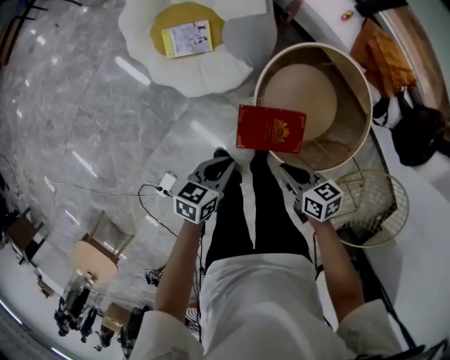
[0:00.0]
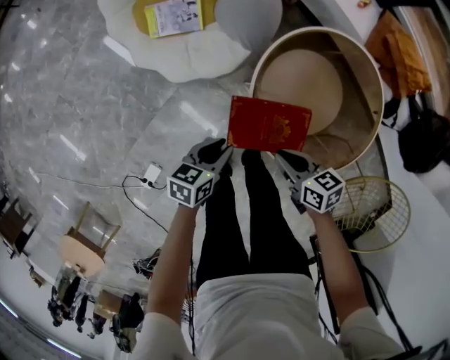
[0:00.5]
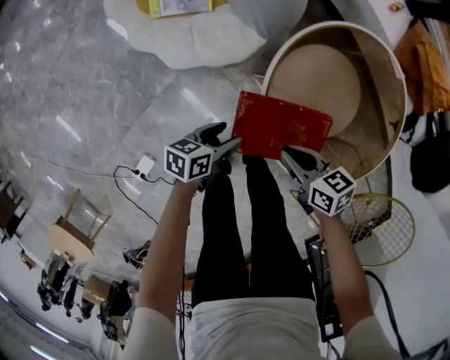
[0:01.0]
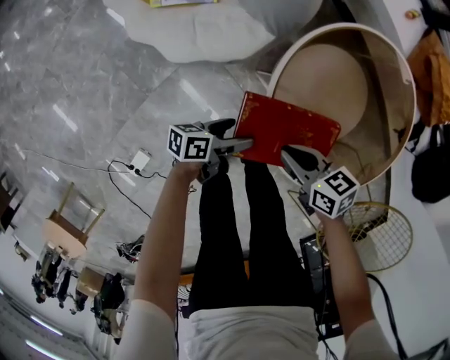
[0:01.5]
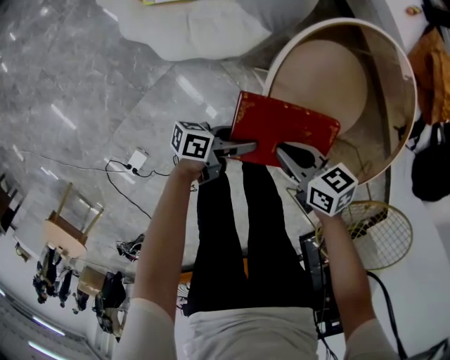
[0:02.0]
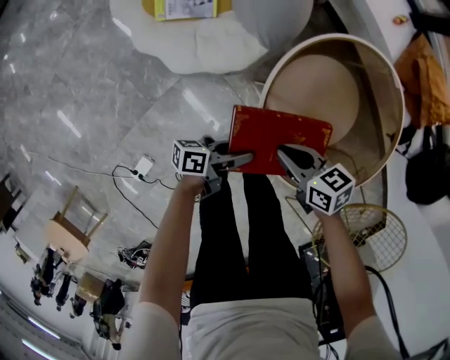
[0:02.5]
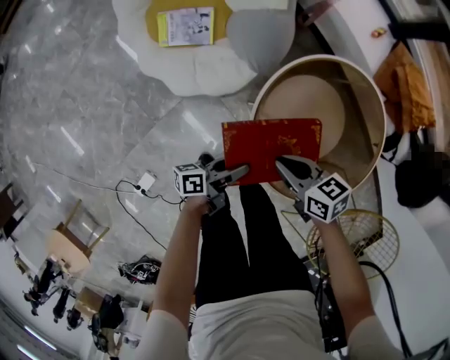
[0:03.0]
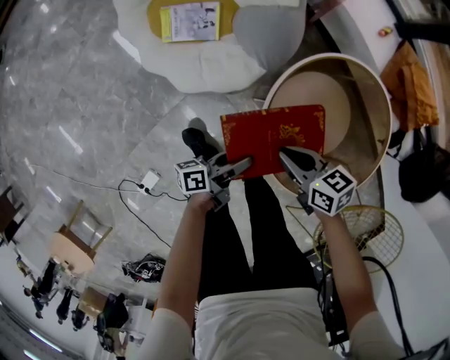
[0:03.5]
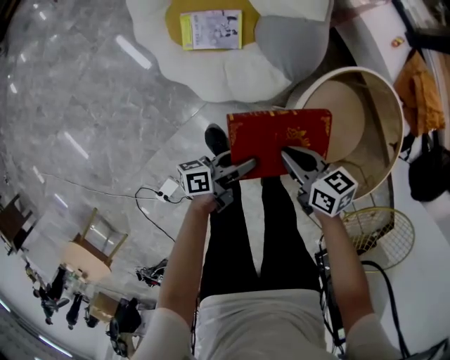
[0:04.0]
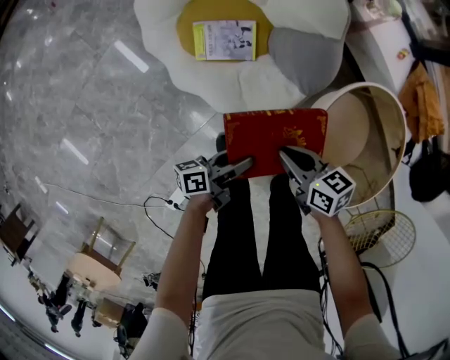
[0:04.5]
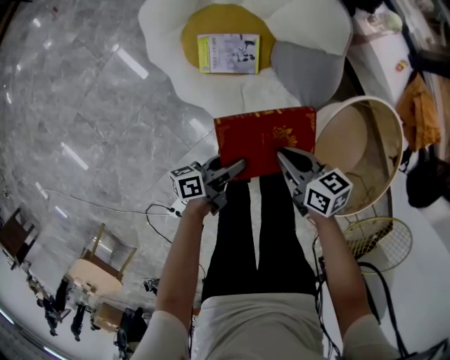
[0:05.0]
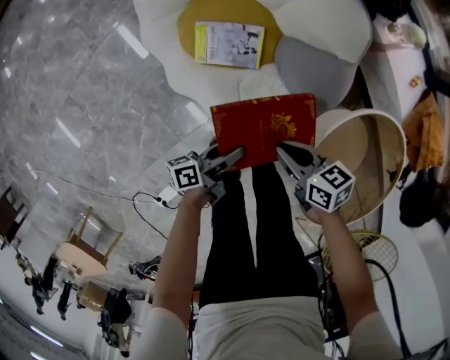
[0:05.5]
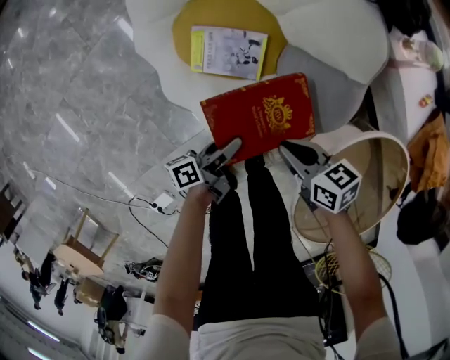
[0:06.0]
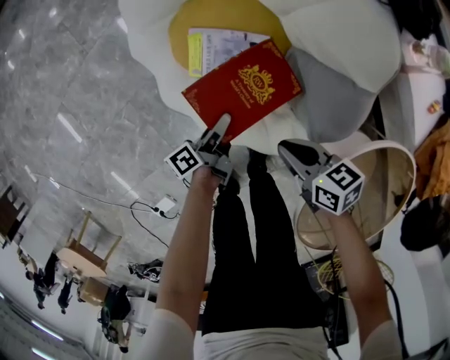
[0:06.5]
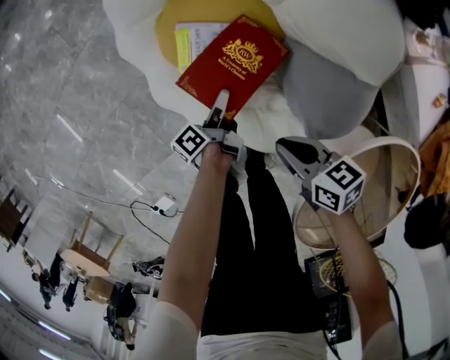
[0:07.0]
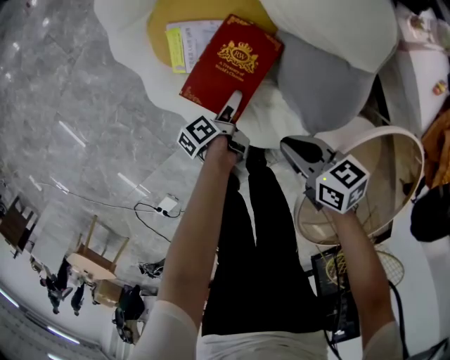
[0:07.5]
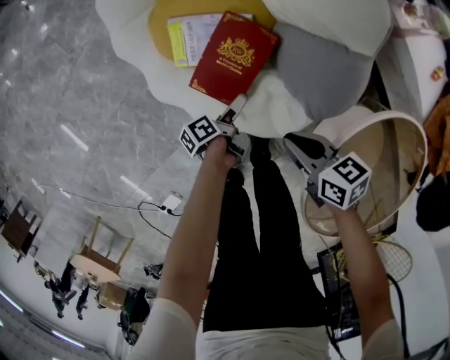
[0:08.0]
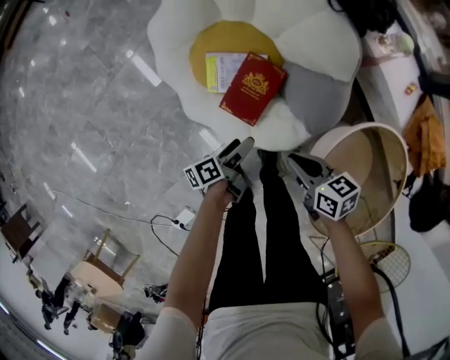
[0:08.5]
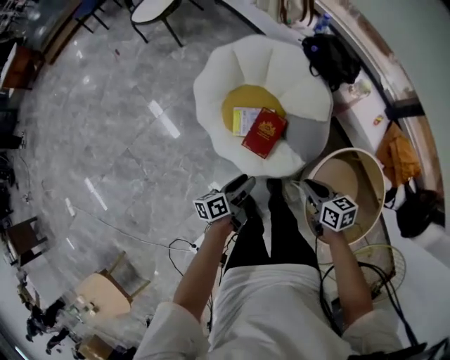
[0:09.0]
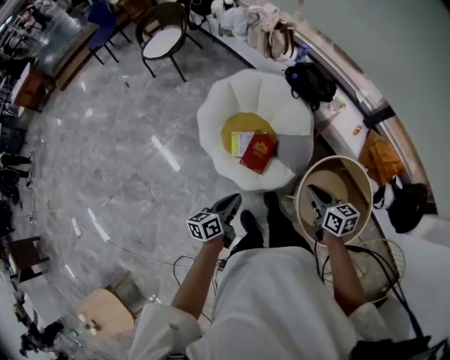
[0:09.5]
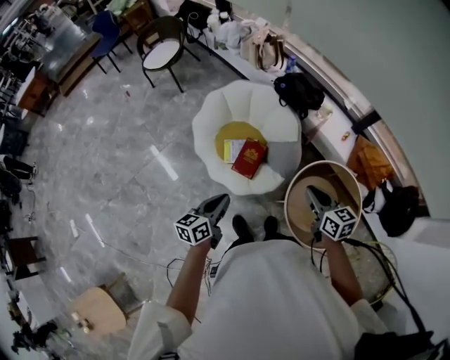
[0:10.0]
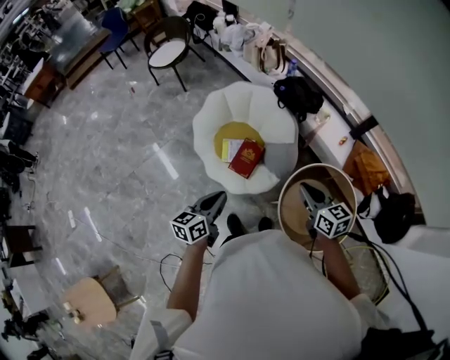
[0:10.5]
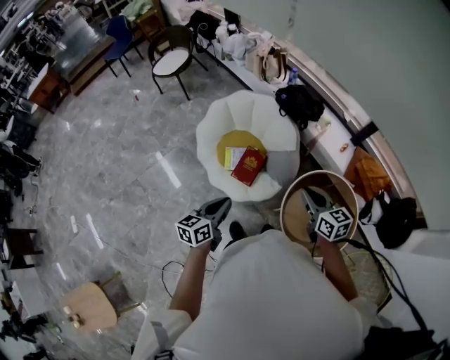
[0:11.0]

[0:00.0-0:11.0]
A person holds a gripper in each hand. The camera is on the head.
0:00.0 to 0:02.0: The two grippers go approximately 25 cm downward. The left gripper rotates some 50 degrees, and opens.
0:02.0 to 0:03.5: The grippers both shift upward by about 10 cm. The left gripper rotates some 20 degrees.
0:03.5 to 0:05.5: Both grippers move forward and to the left, about 25 cm.
0:05.5 to 0:07.5: The left gripper goes roughly 25 cm downward and forward, turns by about 40 degrees, and opens its fingers; the right gripper heads downward and to the right, covering approximately 15 cm.
0:07.5 to 0:09.0: Both grippers travel together upward, roughly 40 cm. The left gripper swivels some 40 degrees, and closes up. The right gripper rotates some 20 degrees.
0:09.0 to 0:11.0: The left gripper is displaced upward and backward by approximately 30 cm, rotates about 30 degrees, and closes; the right gripper heads upward, covering roughly 25 cm, and turns by approximately 20 degrees.

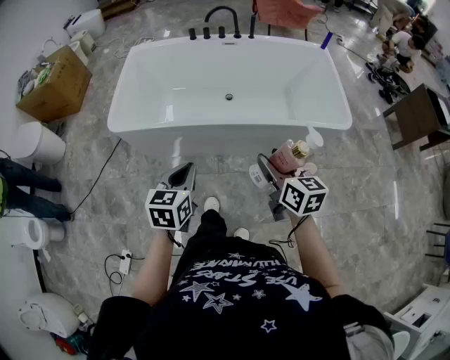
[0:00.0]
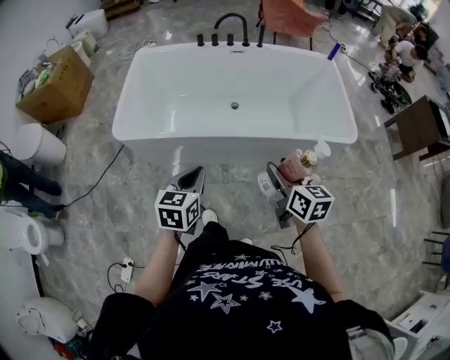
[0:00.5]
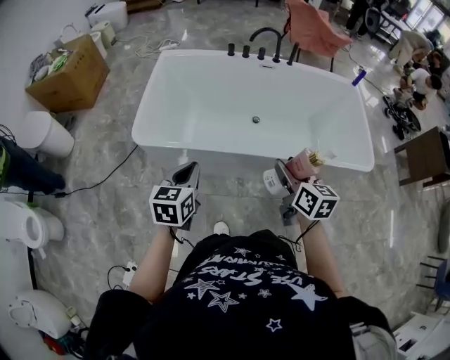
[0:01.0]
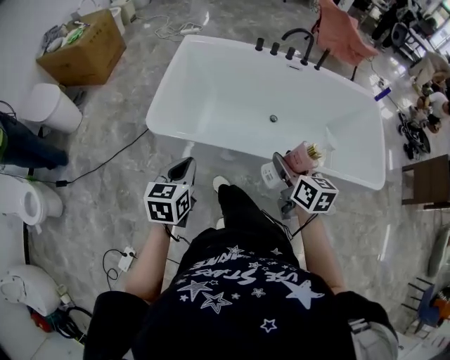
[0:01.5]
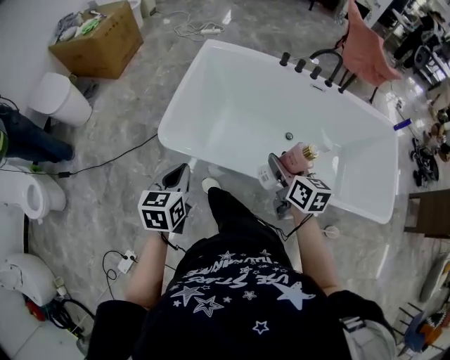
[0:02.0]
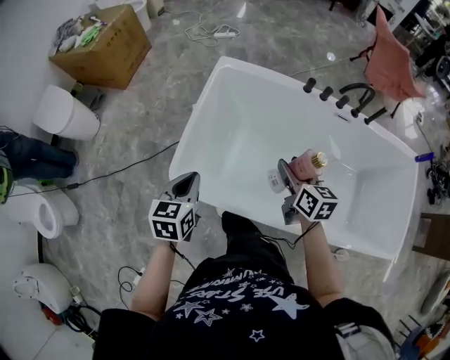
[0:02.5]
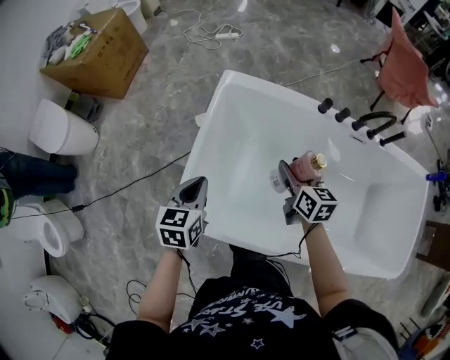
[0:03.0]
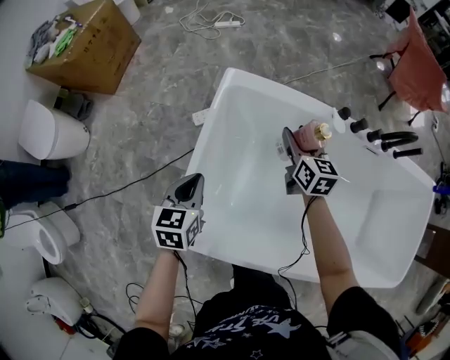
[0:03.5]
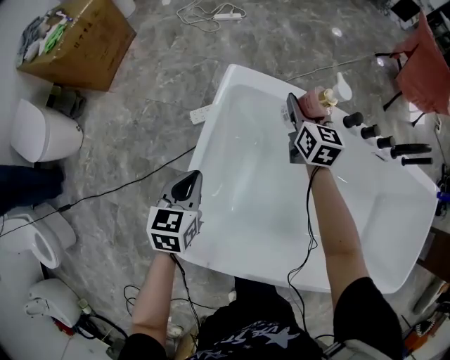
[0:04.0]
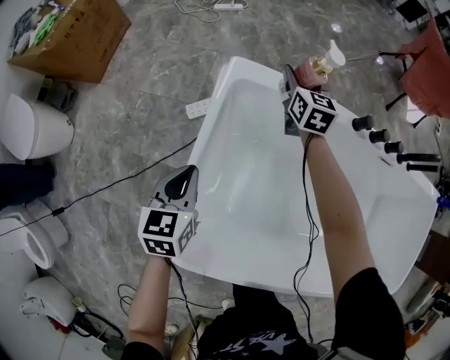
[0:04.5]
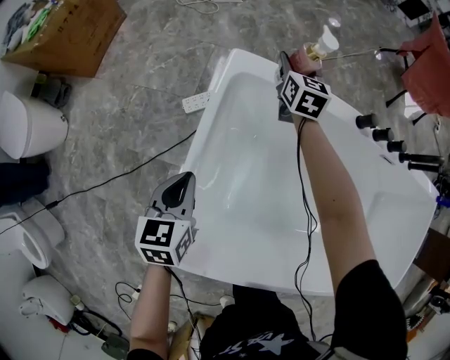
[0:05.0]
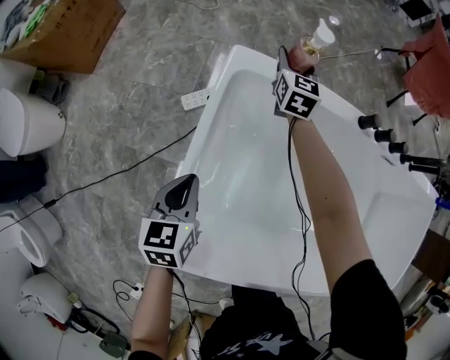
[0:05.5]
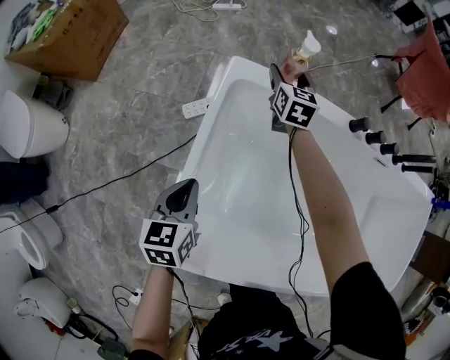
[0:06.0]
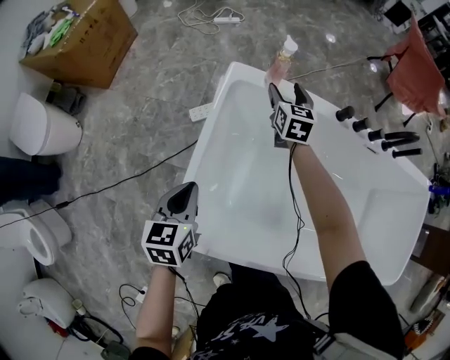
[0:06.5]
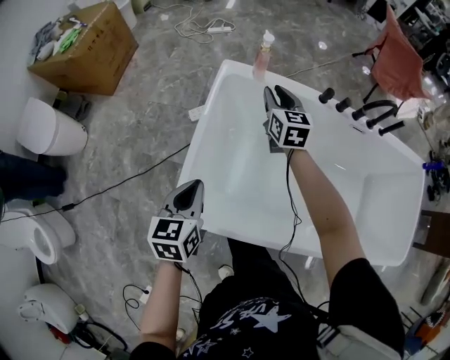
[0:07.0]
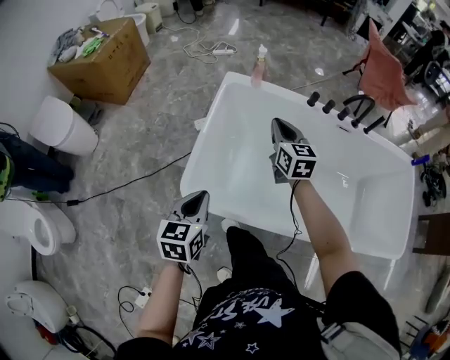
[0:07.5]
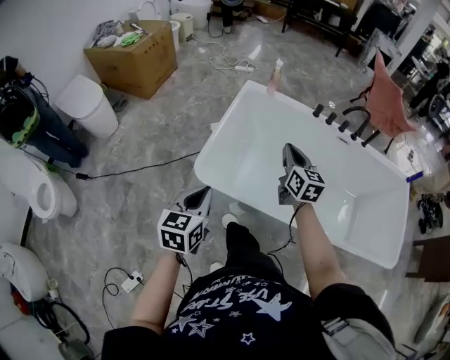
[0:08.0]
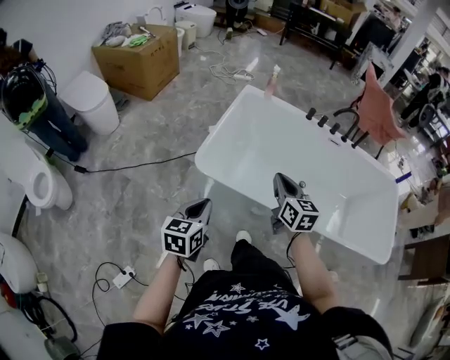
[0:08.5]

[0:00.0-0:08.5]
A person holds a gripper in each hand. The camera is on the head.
0:00.0 to 0:02.0: Both grippers are carried forward and to the left, roughly 40 cm.
0:02.0 to 0:04.0: The two grippers travel together, forward, about 60 cm.
0:04.0 to 0:06.5: The left gripper heads backward, covering about 10 cm. Meanwhile the right gripper reaches roughly 10 cm forward, then returns.
0:06.5 to 0:08.5: Both grippers are carried backward, some 60 cm. The right gripper closes its fingers.

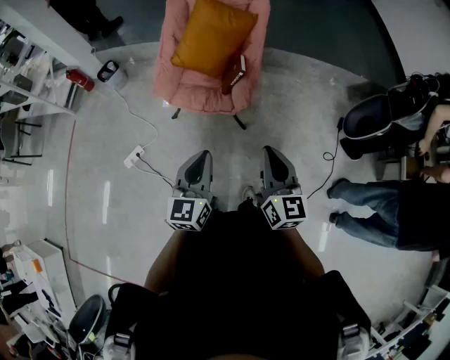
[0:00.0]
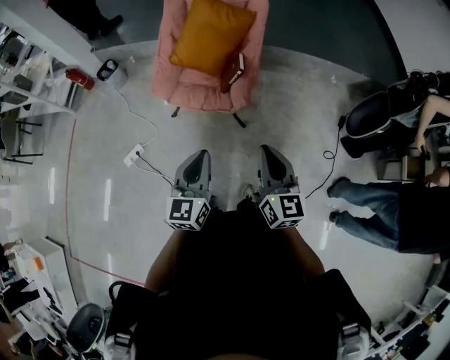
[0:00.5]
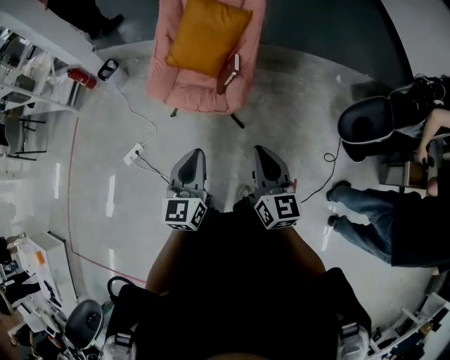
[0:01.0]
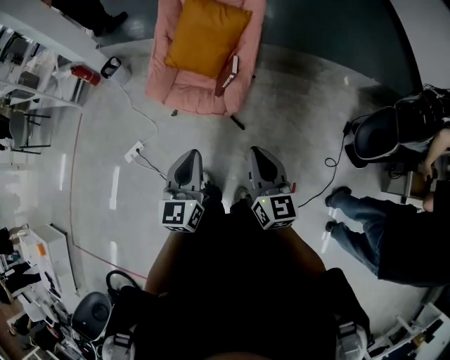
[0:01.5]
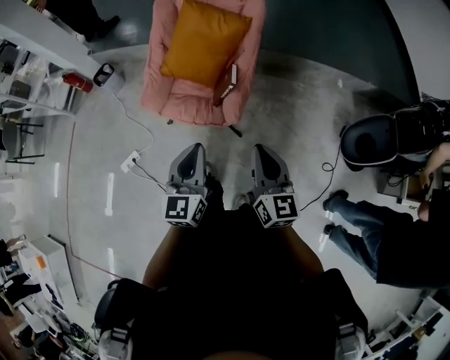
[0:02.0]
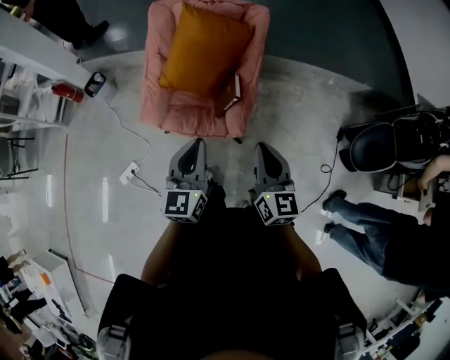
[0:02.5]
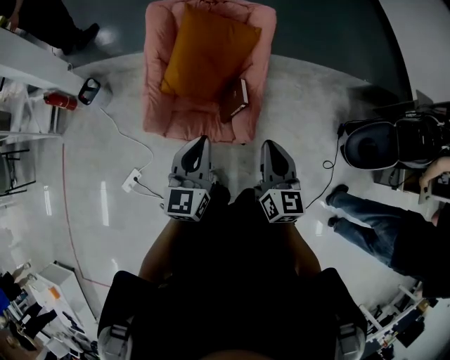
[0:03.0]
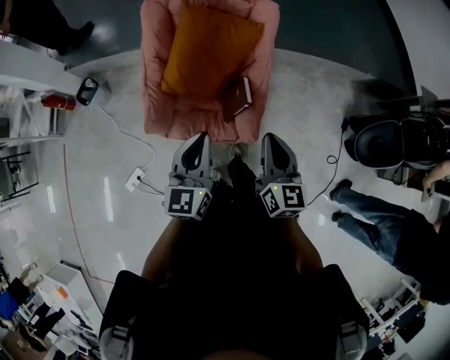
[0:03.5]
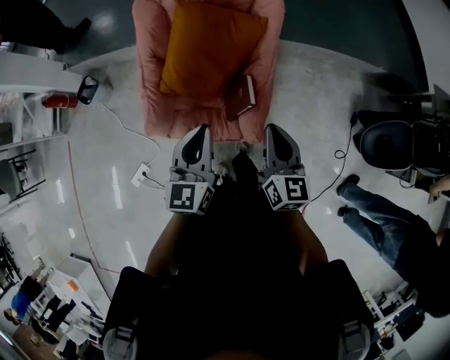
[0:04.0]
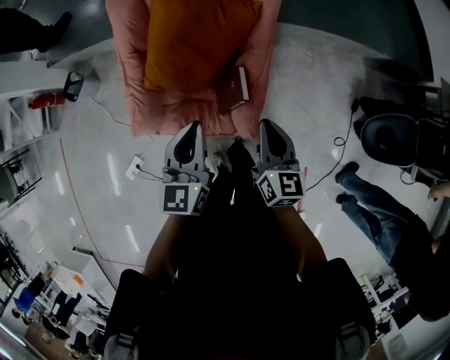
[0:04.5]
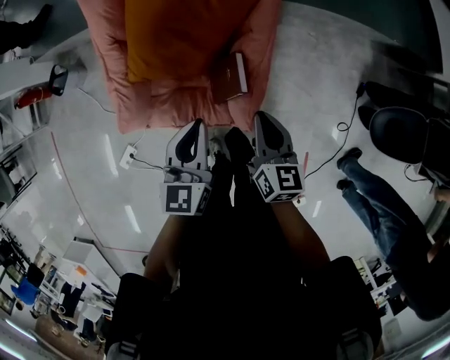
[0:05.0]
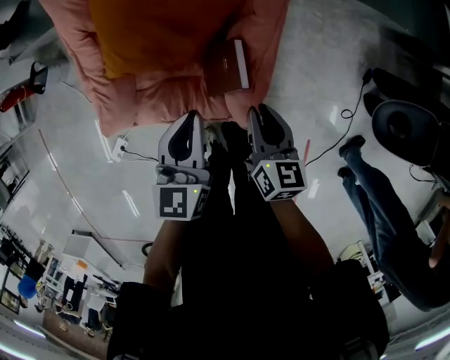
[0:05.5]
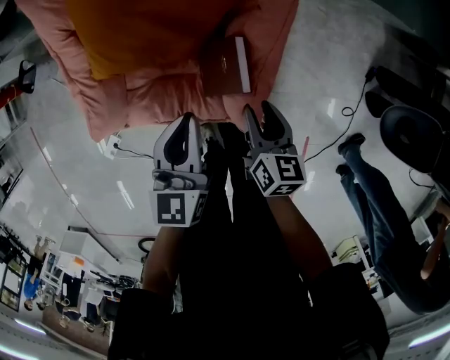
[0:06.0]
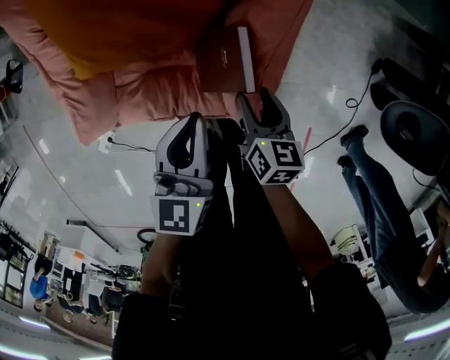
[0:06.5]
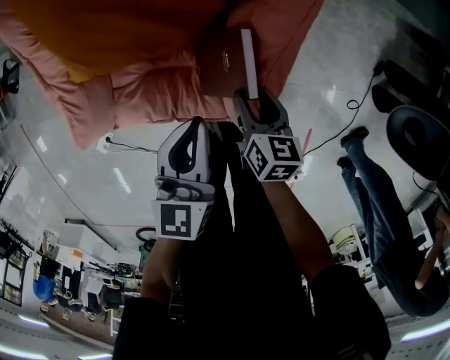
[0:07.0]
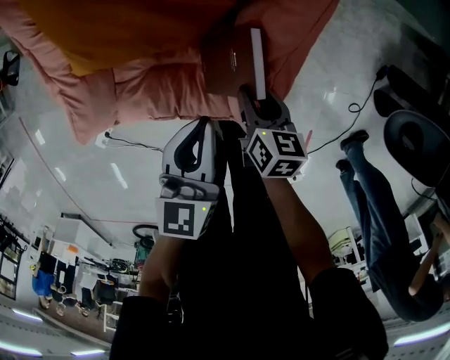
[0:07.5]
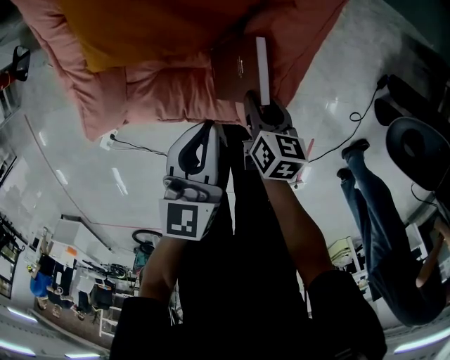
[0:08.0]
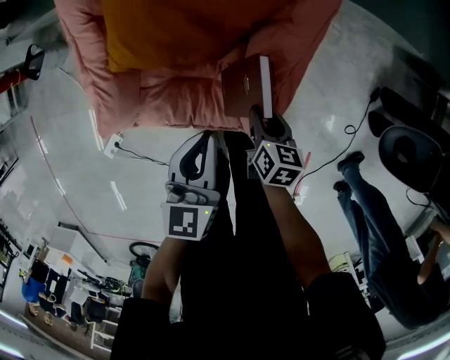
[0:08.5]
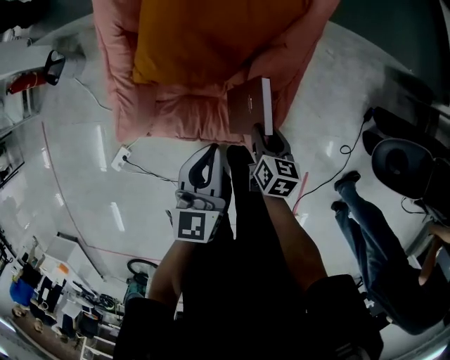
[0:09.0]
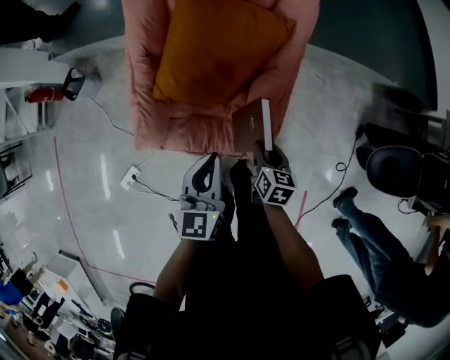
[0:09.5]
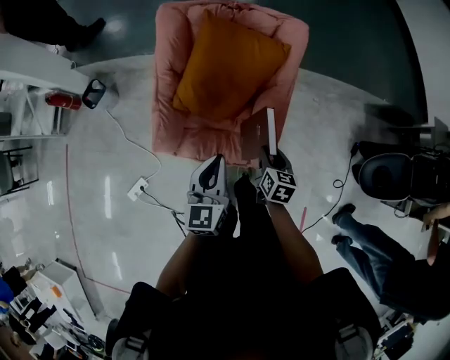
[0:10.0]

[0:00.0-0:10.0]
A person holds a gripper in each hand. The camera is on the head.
0:00.0 to 0:02.0: Both grippers move forward and to the right, approximately 15 cm.
0:02.0 to 0:04.0: The grippers both shift forward by approximately 25 cm.
0:04.0 to 0:06.0: The left gripper moves downward and forward, approximately 30 cm, while the right gripper heads downward, covering about 30 cm, changes its angle by roughly 30 degrees, and opens.
0:06.0 to 0:08.0: The right gripper goes approximately 10 cm downward; the left gripper shifts approximately 5 cm downward.
0:08.0 to 0:10.0: The right gripper moves upward, approximately 25 cm, while the left gripper moves upward and backward, some 25 cm.
